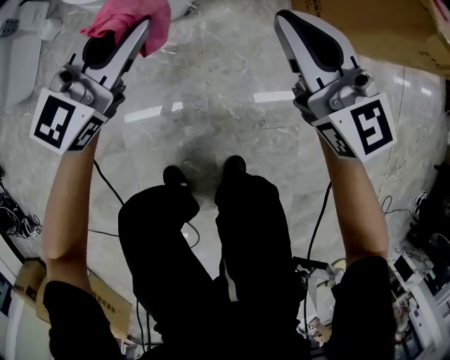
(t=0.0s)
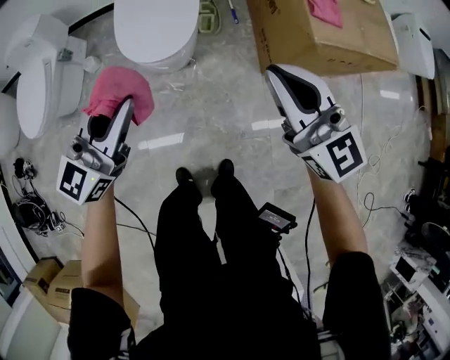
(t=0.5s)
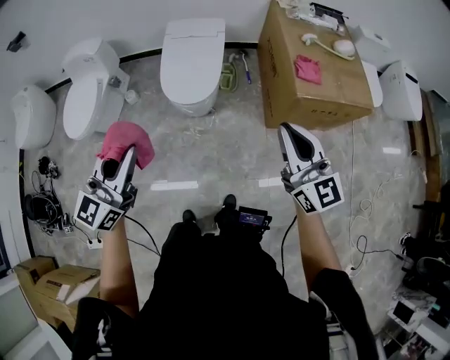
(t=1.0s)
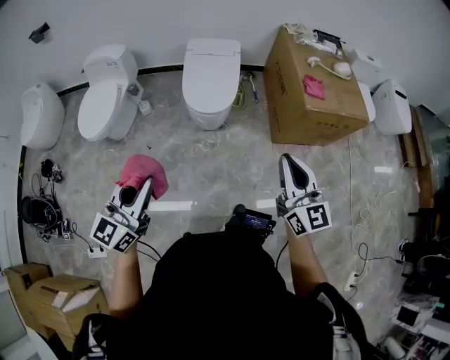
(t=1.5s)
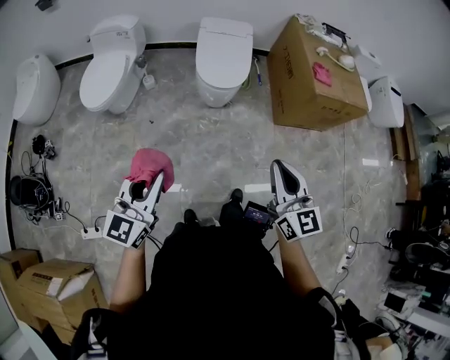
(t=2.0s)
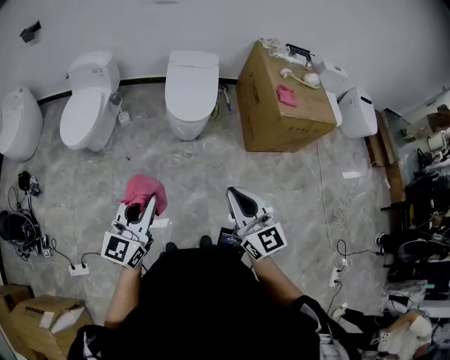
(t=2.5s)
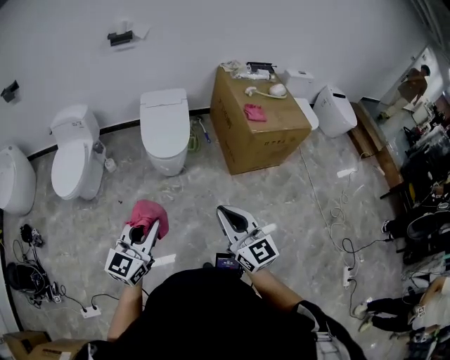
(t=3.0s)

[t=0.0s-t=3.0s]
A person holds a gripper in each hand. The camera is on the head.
t=0.0s to t=1.5s: Both grippers travel together upward and backward, approximately 60 cm. The left gripper turns by roughly 20 degrees.
t=1.5s to t=3.0s: The right gripper travels backward and to the left by roughly 15 cm. Meanwhile the left gripper travels to the right and backward by some 10 cm.

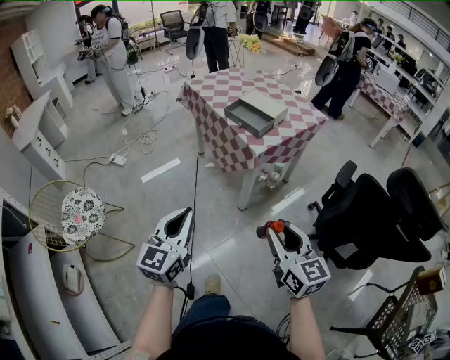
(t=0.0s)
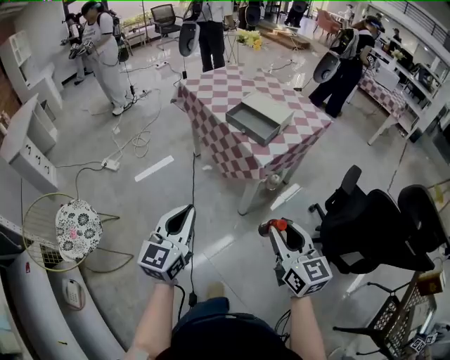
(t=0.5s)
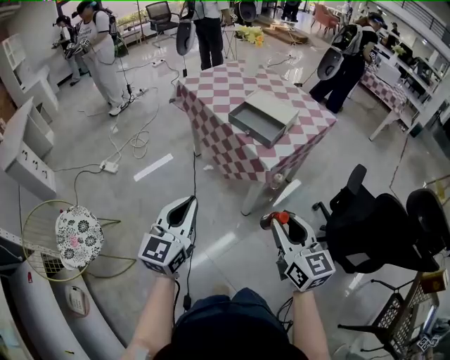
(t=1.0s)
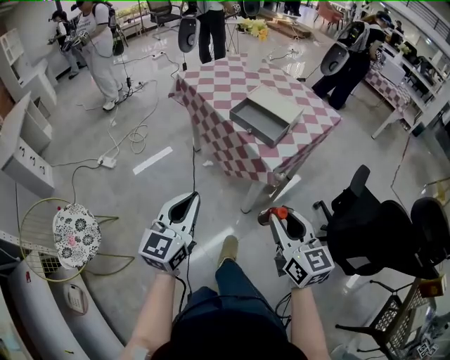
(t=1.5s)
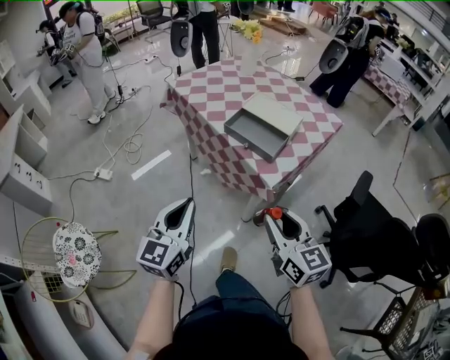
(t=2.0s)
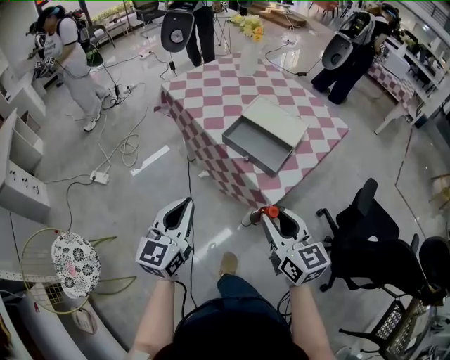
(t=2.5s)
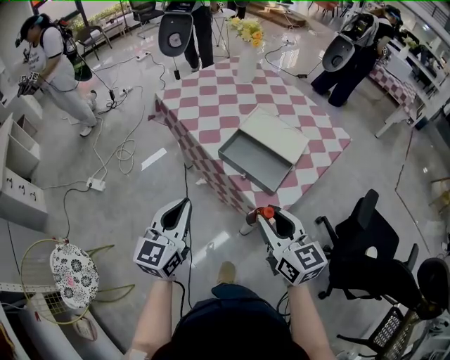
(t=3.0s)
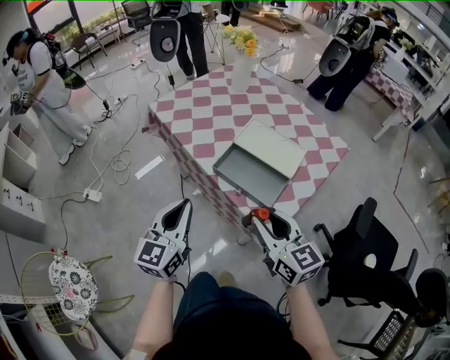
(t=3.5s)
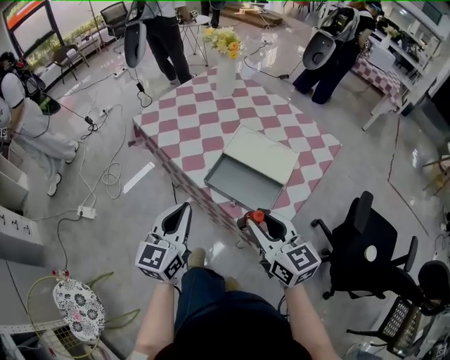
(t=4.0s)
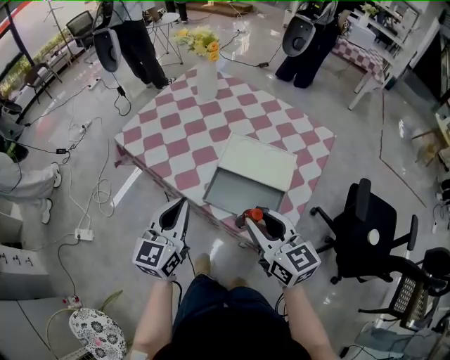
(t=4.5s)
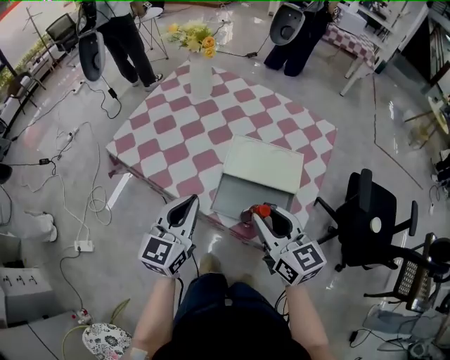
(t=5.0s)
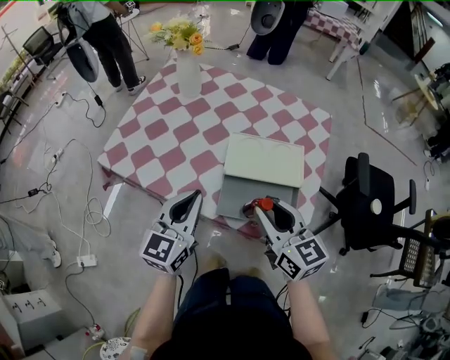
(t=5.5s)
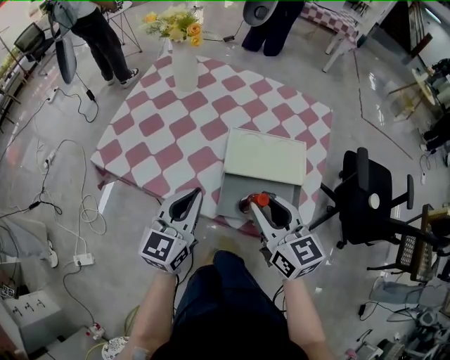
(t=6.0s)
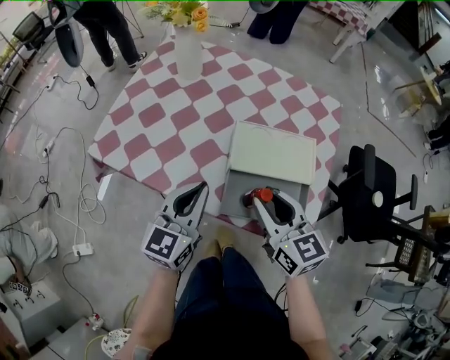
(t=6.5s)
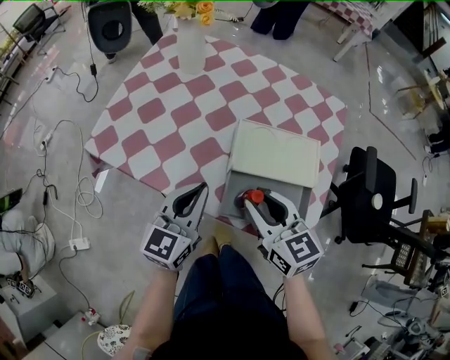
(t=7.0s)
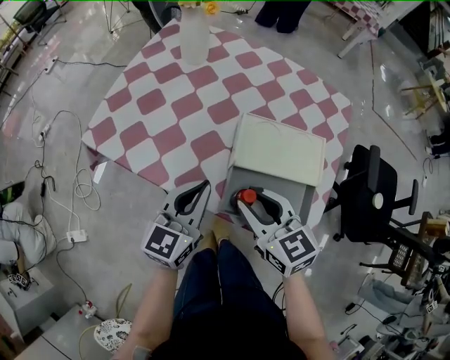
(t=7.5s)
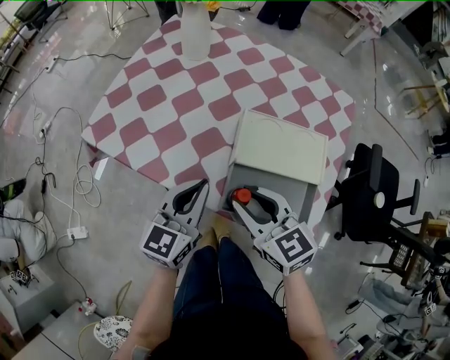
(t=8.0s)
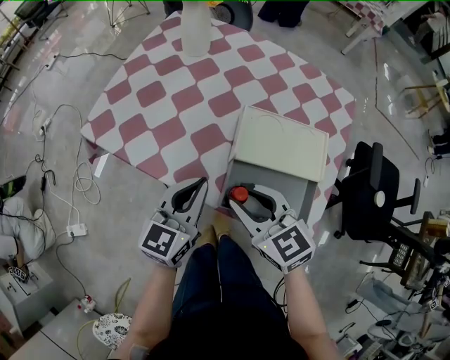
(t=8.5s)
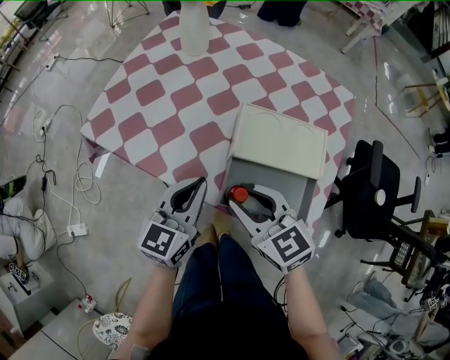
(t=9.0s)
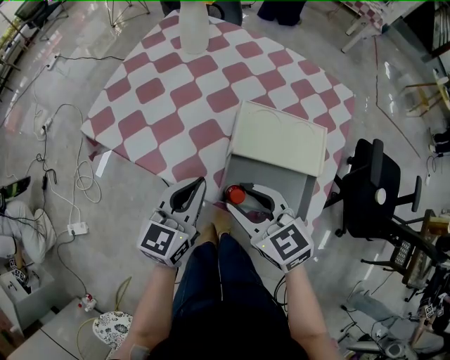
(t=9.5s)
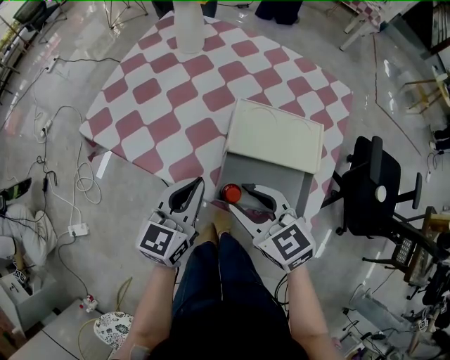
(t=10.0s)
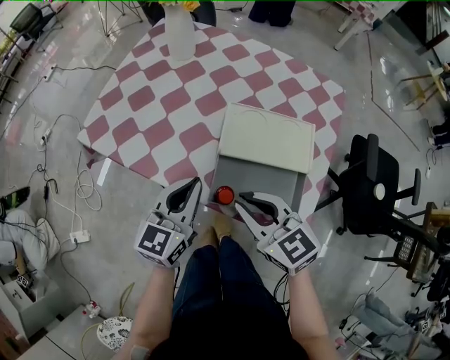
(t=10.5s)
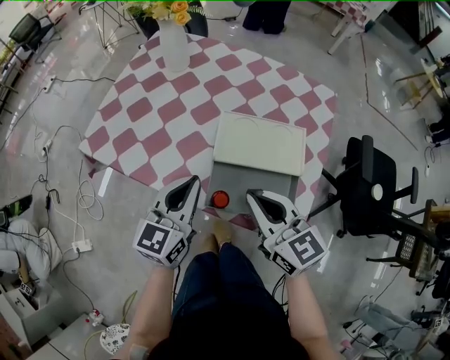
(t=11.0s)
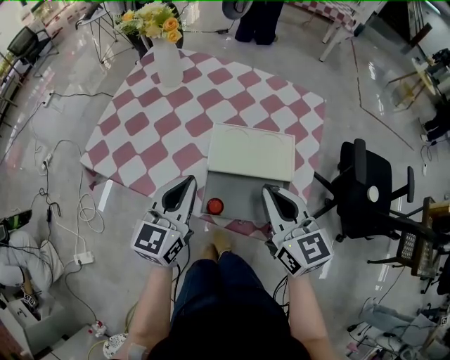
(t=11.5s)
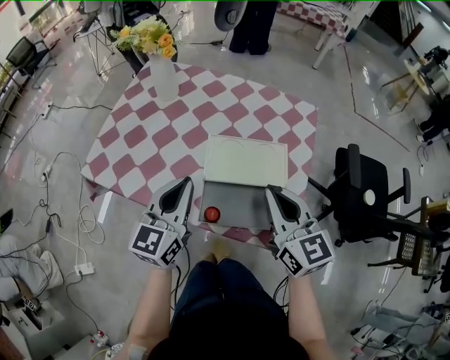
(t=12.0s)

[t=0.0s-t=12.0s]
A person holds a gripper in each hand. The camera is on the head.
t=0.0s to t=2.0s: Both grippers travel together forward, roughly 30 cm.
t=2.0s to t=4.0s: Both grippers travel together forward, about 25 cm.
t=4.0s to t=6.0s: The left gripper moves approximately 20 cm, and changes its angle by roughly 30 degrees. Meanwhile the right gripper shifts by approximately 15 cm, and turns by roughly 30 degrees.
t=6.0s to t=8.0s: The left gripper heads downward, covering some 5 cm. Meanwhile the right gripper shifts approximately 10 cm downward and to the left, and rotates some 20 degrees.
t=8.0s to t=10.0s: The grippers move only a little.
t=10.0s to t=12.0s: The right gripper travels to the right and upward by about 20 cm, changes its angle by some 30 degrees, and closes up; the left gripper shifts roughly 10 cm upward.

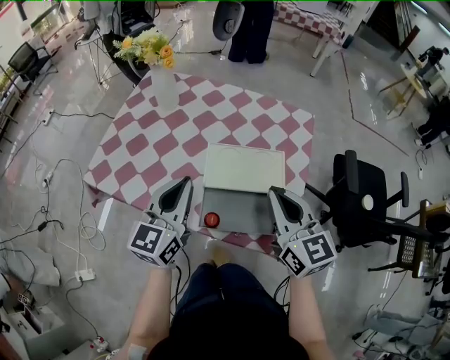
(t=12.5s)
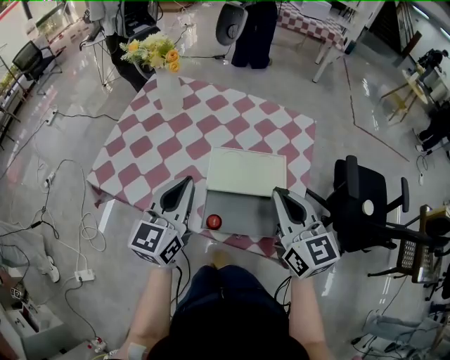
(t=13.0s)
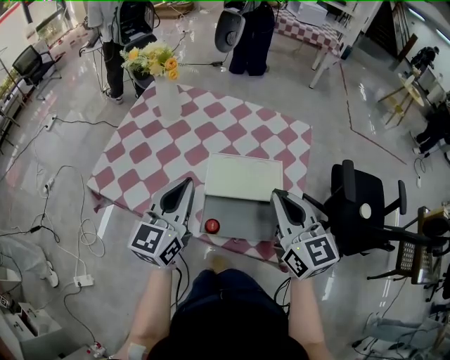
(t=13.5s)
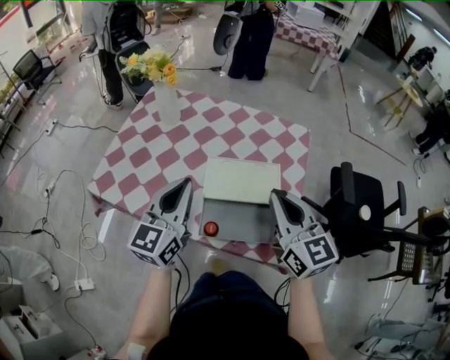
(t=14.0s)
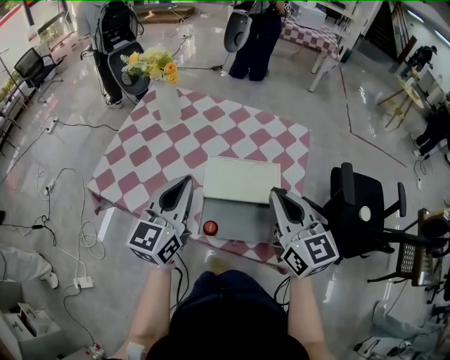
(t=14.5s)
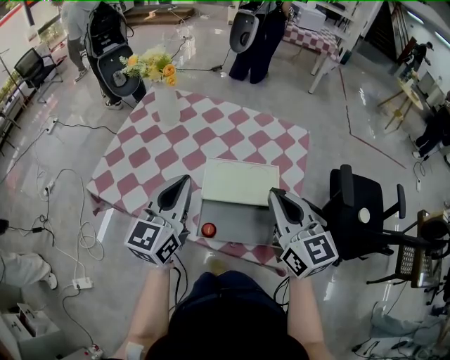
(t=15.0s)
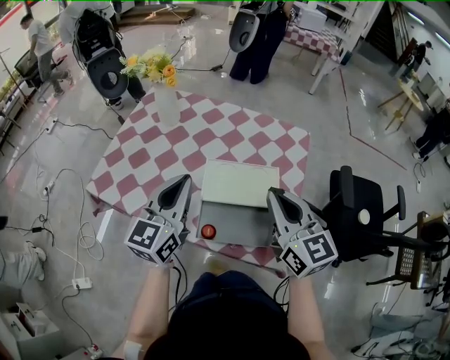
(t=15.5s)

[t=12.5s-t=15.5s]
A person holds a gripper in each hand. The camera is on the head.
t=12.5s to t=14.0s: There are only small adjustments of the grippers.
t=14.0s to t=15.5s: Both grippers stay put.

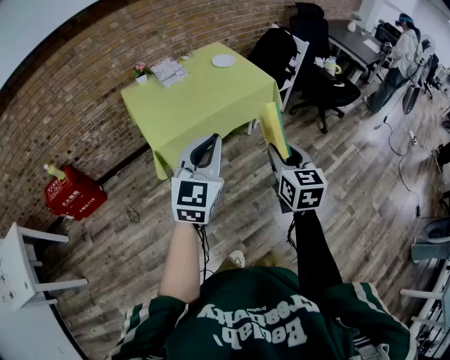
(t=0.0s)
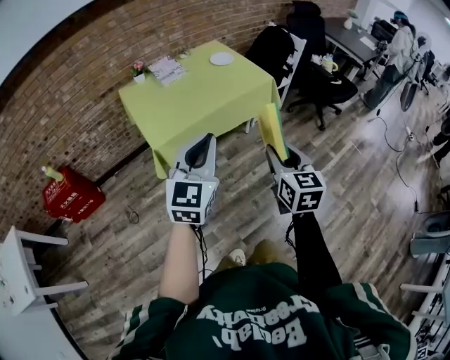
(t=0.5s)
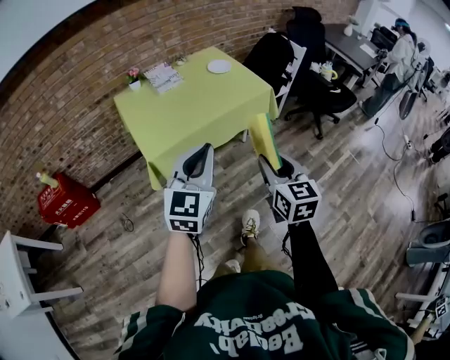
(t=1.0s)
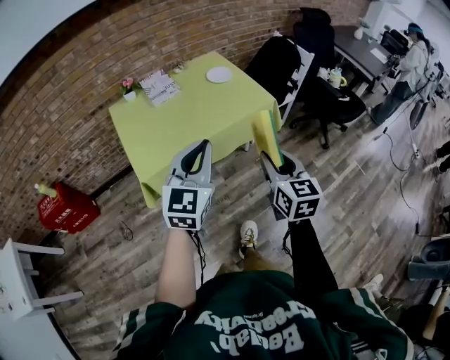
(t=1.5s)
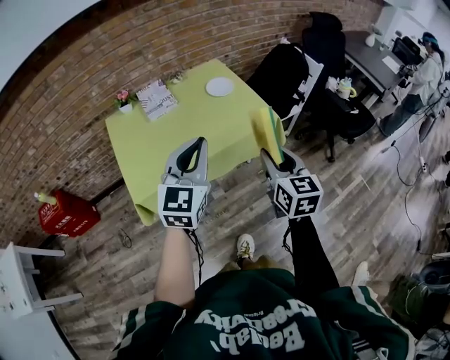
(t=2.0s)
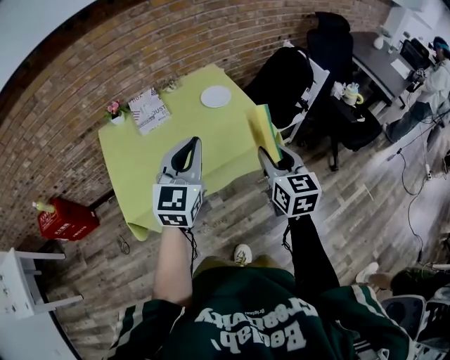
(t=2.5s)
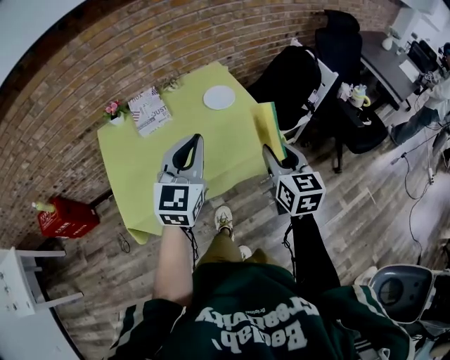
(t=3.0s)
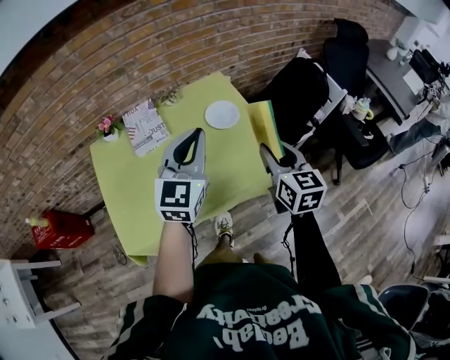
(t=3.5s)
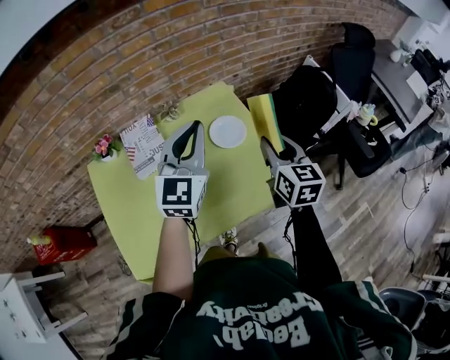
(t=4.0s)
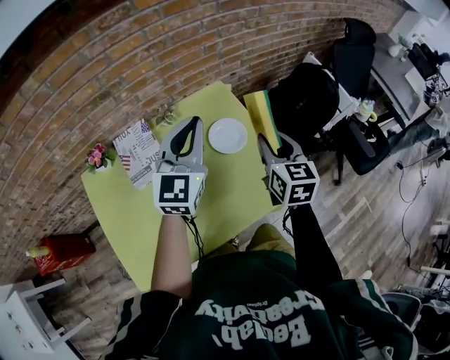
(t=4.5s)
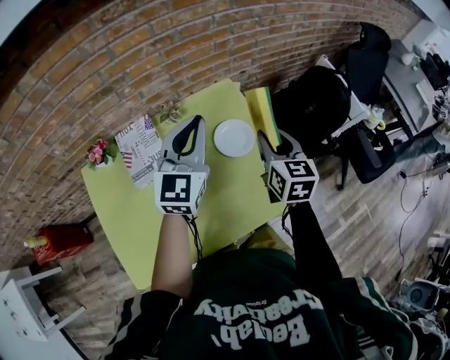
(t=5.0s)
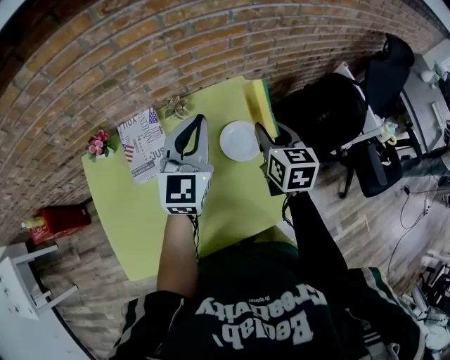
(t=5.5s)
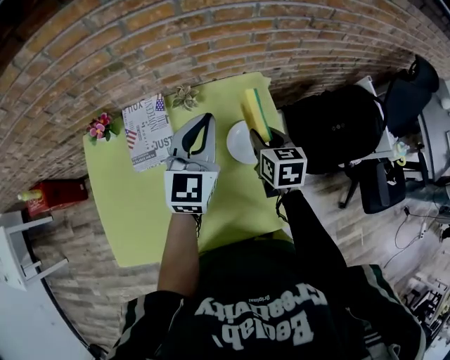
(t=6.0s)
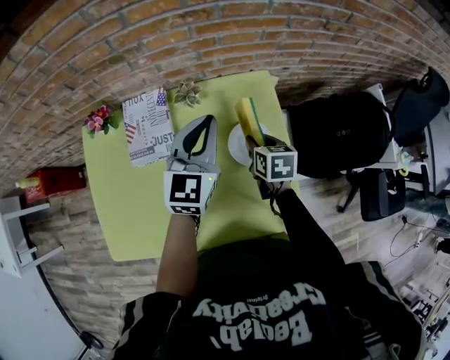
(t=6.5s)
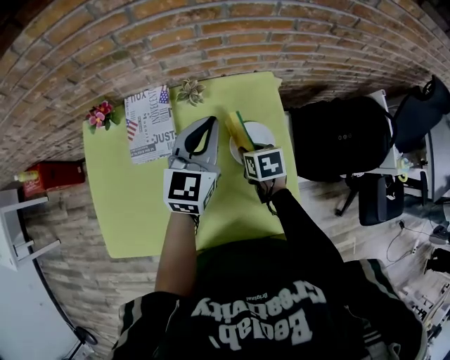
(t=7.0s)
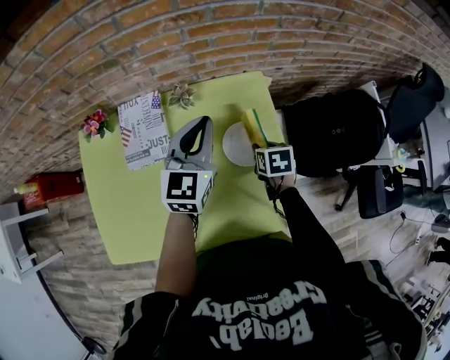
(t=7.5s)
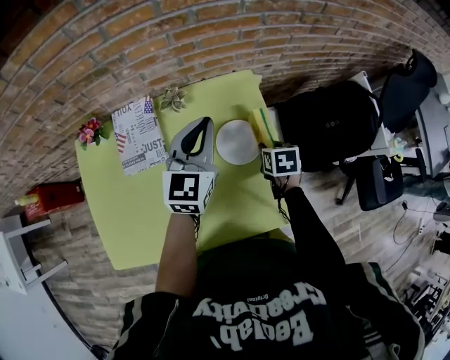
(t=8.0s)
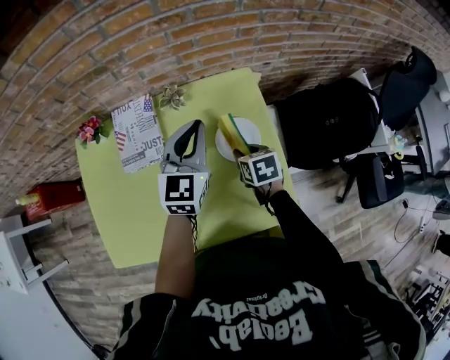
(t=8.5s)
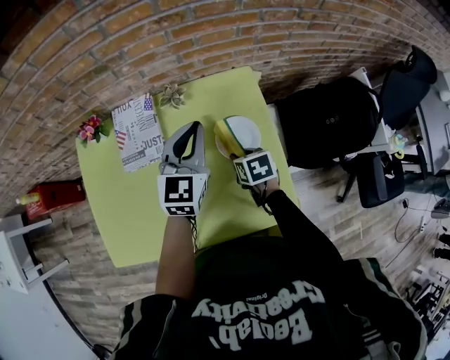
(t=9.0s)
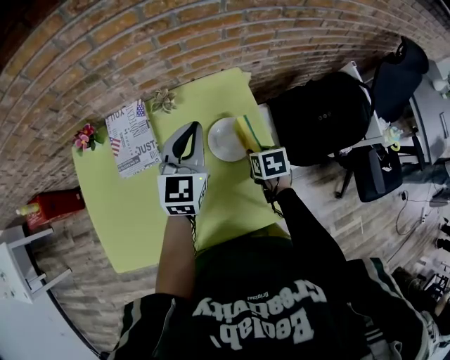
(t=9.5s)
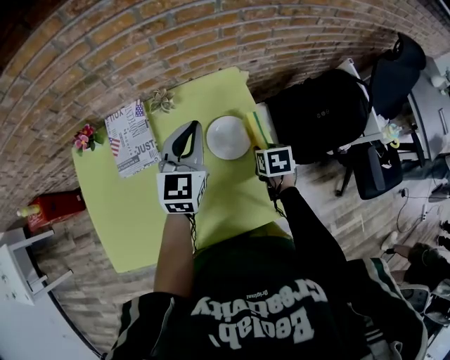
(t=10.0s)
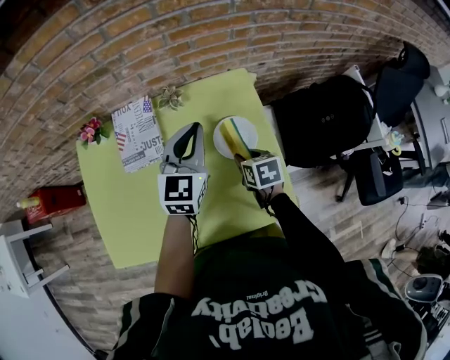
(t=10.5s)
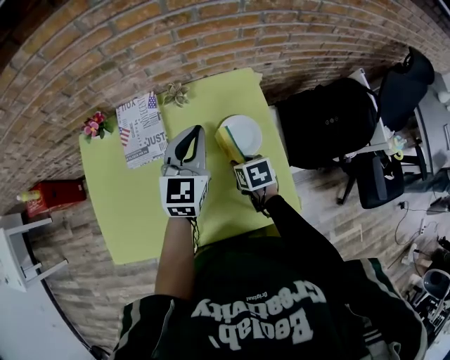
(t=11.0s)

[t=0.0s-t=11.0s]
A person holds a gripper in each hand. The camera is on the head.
t=0.0s to t=2.0s: Both grippers move forward, roughly 30 cm.
t=2.0s to t=3.5s: Both grippers move forward, approximately 30 cm.
t=3.5s to t=5.5s: Both grippers move forward, about 25 cm.
t=5.5s to t=7.5s: The left gripper heads downward, covering approximately 5 cm. Meanwhile the right gripper goes roughly 20 cm downward, and points its fingers roughly 30 degrees further downward.
t=7.5s to t=9.0s: The right gripper travels to the left by about 5 cm.
t=9.0s to t=11.0s: The right gripper travels to the right and back again, some 10 cm each way.
